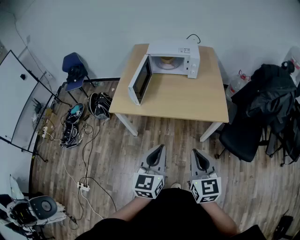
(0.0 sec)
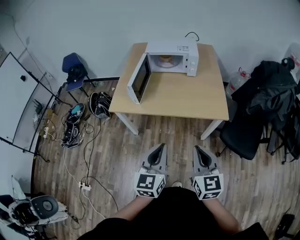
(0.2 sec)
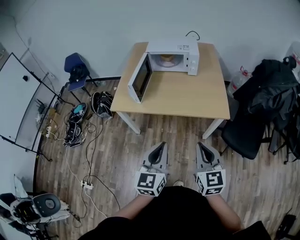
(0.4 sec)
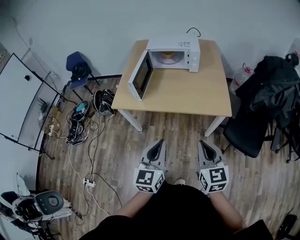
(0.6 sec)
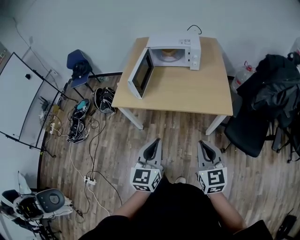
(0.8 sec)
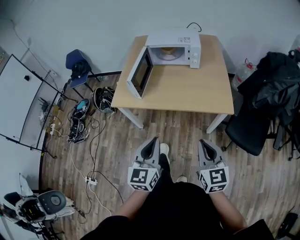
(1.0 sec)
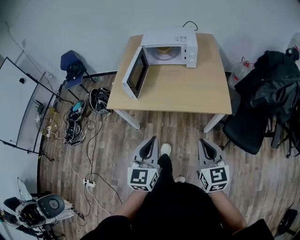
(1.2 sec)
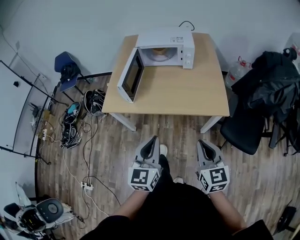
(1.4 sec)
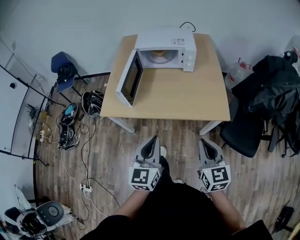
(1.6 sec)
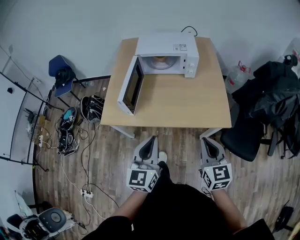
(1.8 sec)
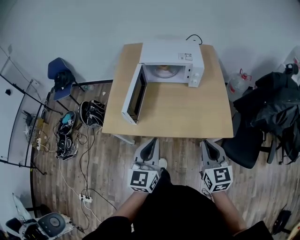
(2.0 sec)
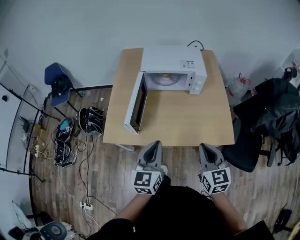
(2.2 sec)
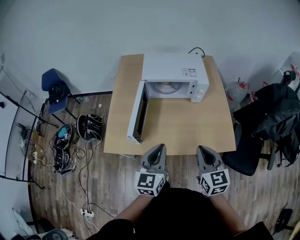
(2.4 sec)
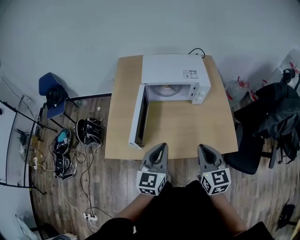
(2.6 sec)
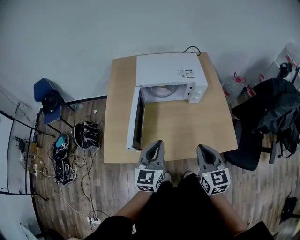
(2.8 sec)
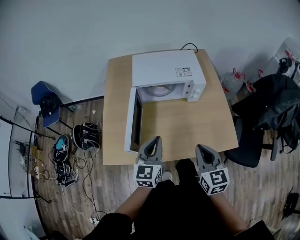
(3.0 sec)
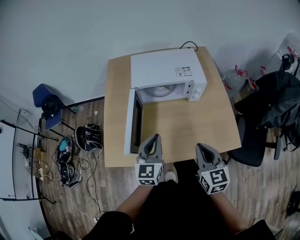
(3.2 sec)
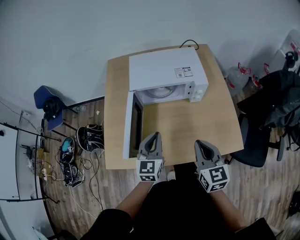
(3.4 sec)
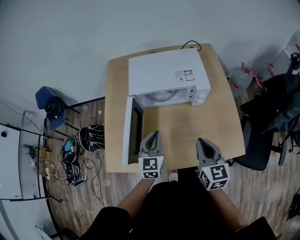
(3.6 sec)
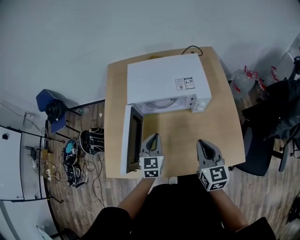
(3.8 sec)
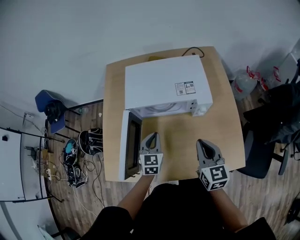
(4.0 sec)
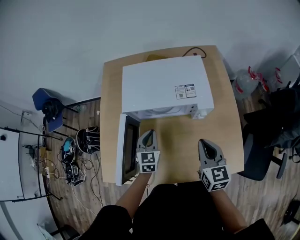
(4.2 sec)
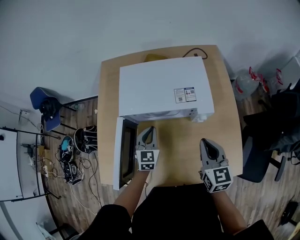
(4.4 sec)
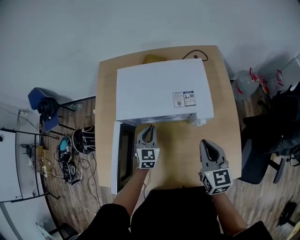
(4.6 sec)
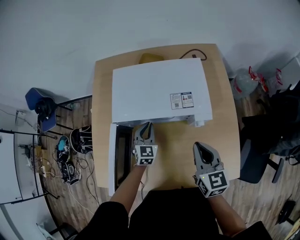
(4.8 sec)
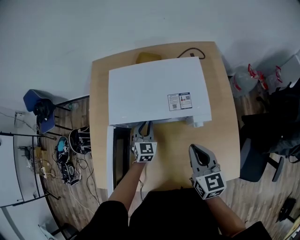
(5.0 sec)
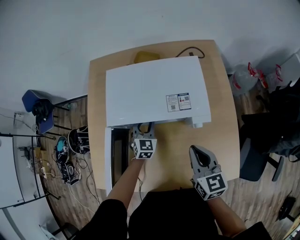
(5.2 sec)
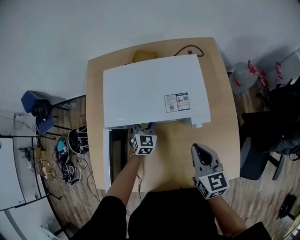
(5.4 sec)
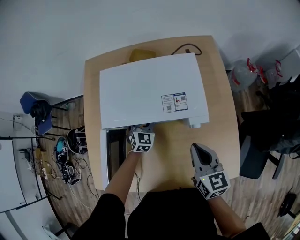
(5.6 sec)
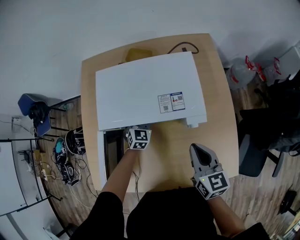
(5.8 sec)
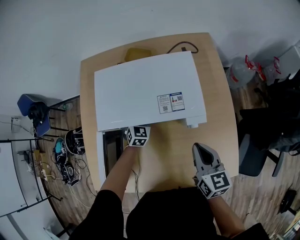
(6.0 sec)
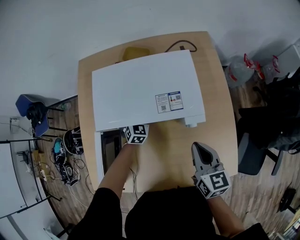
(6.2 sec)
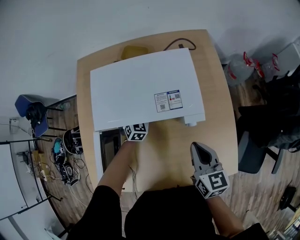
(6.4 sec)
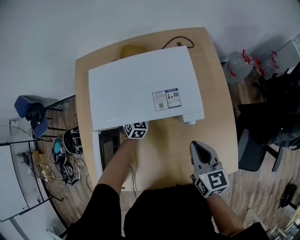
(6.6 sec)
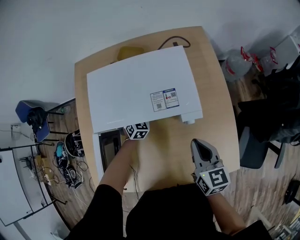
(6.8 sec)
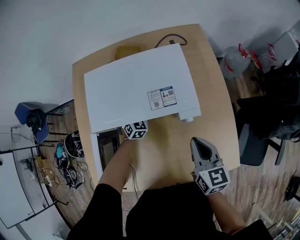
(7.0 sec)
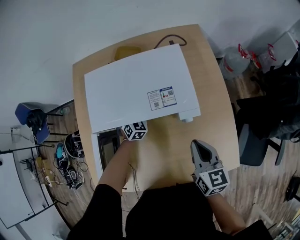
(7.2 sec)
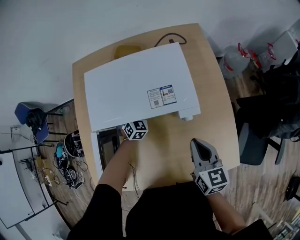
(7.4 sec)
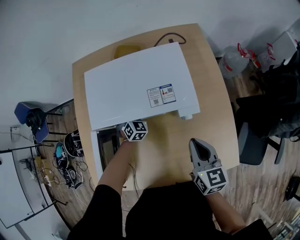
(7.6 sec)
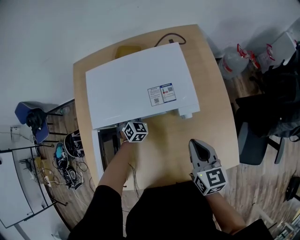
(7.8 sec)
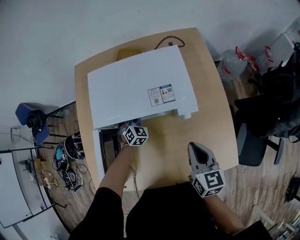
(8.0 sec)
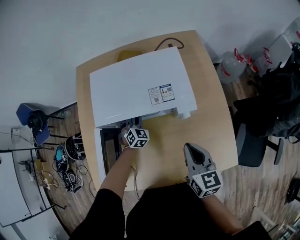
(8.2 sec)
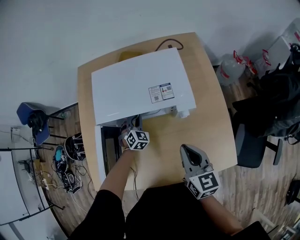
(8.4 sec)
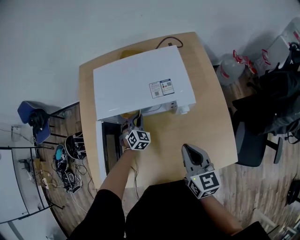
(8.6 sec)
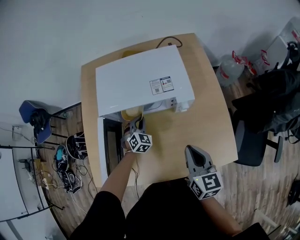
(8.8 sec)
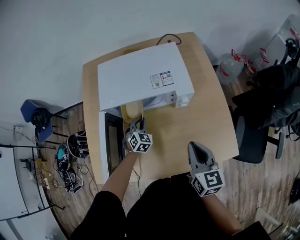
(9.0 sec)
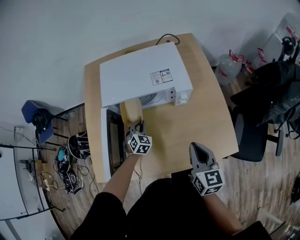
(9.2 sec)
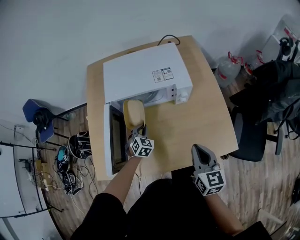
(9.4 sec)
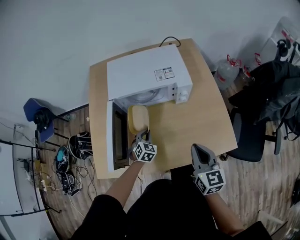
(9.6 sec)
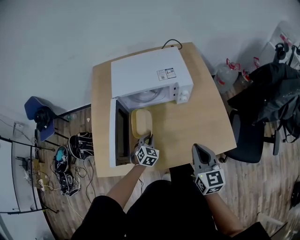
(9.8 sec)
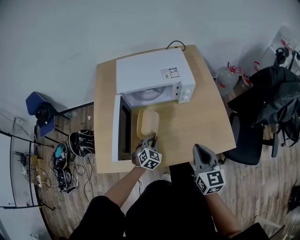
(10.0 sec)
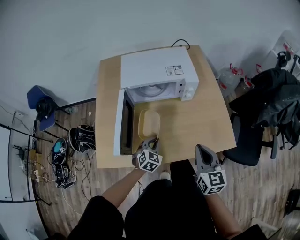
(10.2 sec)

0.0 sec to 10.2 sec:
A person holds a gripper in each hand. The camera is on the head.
0.0 sec to 1.4 sec: The left gripper travels forward by approximately 5 cm, while the right gripper goes some 10 cm forward and to the right.
1.4 sec to 3.0 sec: The right gripper heads forward and to the left, covering roughly 30 cm, while the left gripper heads forward, covering roughly 35 cm.
3.0 sec to 4.4 sec: The left gripper moves forward and downward, approximately 30 cm, and rotates some 20 degrees. The right gripper goes about 25 cm forward.
4.4 sec to 5.8 sec: The left gripper goes some 15 cm forward and downward, and opens.
5.8 sec to 7.2 sec: The left gripper closes.
7.2 sec to 8.8 sec: The right gripper travels backward by some 10 cm. The left gripper goes about 15 cm backward.
8.8 sec to 10.2 sec: The right gripper shifts about 15 cm backward, while the left gripper heads backward, covering some 25 cm.

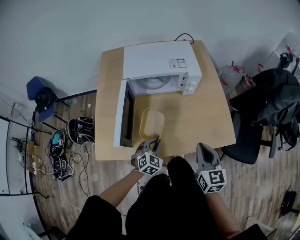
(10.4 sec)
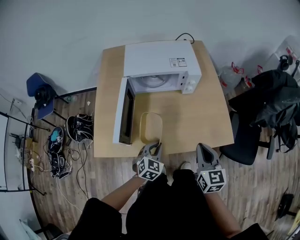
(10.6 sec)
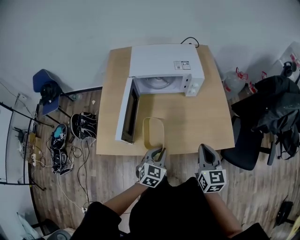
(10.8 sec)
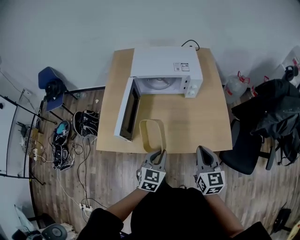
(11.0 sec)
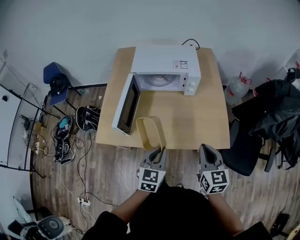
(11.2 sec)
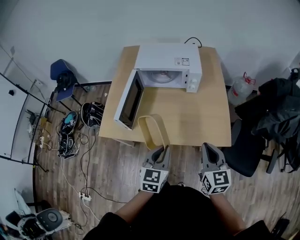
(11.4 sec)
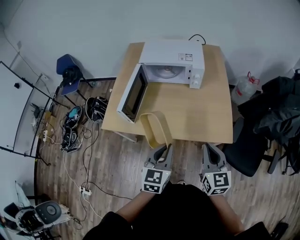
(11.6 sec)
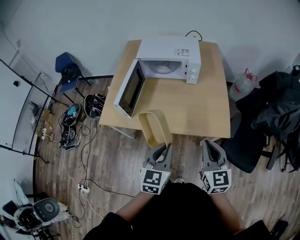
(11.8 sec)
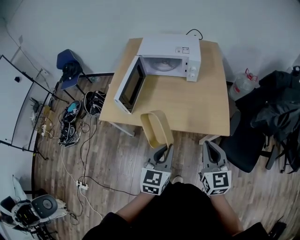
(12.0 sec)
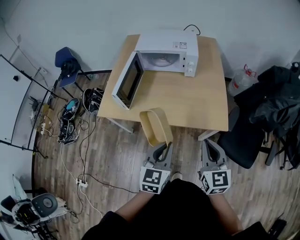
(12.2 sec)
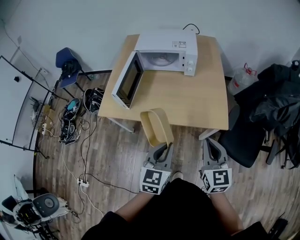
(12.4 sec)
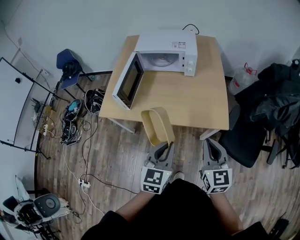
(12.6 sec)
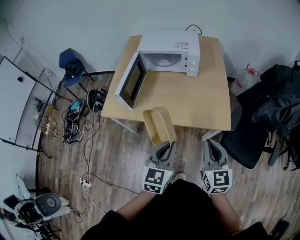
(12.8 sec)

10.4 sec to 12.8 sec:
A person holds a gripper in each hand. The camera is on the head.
10.4 sec to 11.6 sec: The right gripper heads backward, to the right and upward, covering roughly 15 cm; the left gripper travels upward, backward and to the right by approximately 30 cm, and turns by approximately 40 degrees.
11.6 sec to 12.8 sec: The two grippers go approximately 5 cm backward.

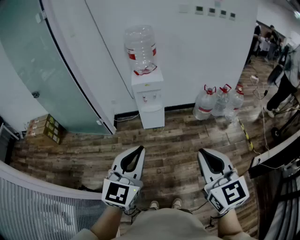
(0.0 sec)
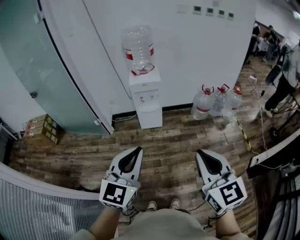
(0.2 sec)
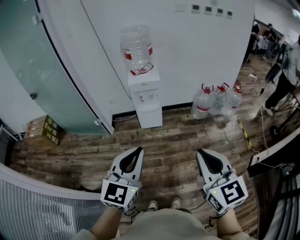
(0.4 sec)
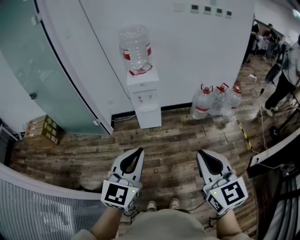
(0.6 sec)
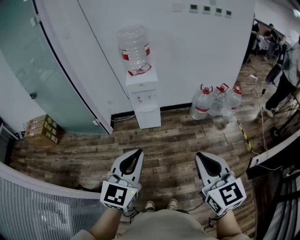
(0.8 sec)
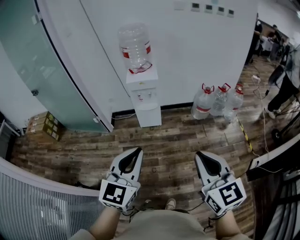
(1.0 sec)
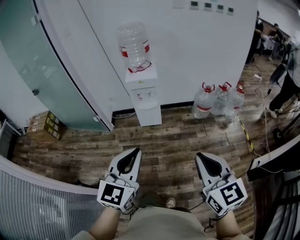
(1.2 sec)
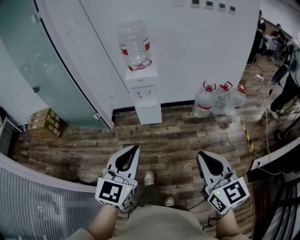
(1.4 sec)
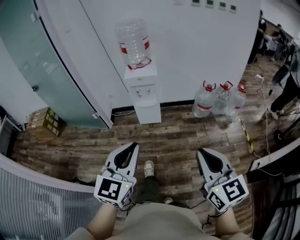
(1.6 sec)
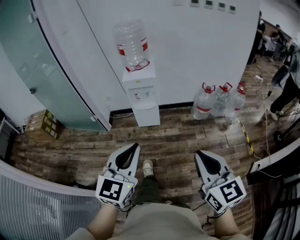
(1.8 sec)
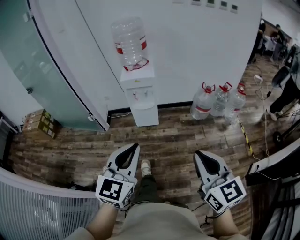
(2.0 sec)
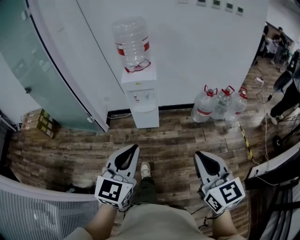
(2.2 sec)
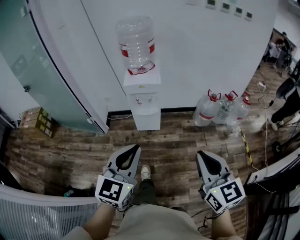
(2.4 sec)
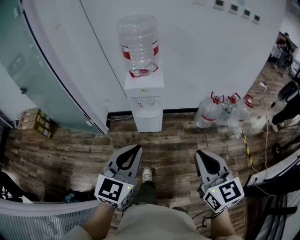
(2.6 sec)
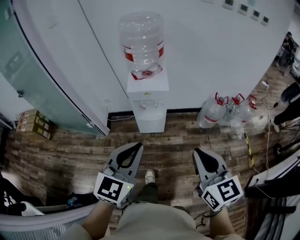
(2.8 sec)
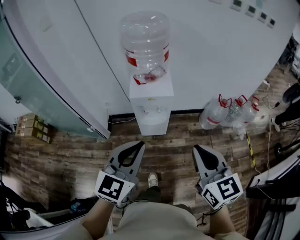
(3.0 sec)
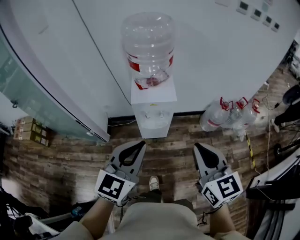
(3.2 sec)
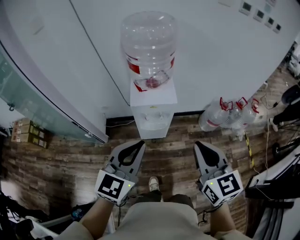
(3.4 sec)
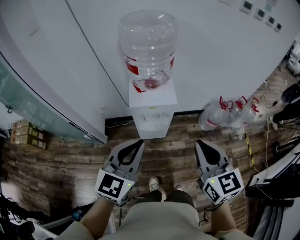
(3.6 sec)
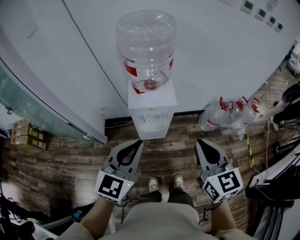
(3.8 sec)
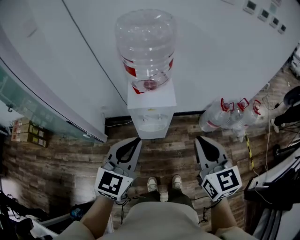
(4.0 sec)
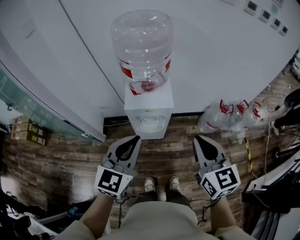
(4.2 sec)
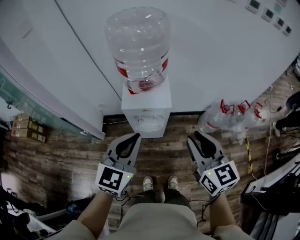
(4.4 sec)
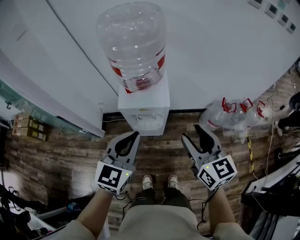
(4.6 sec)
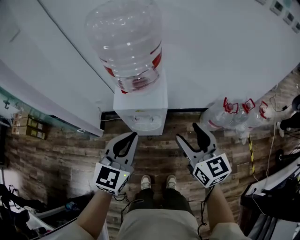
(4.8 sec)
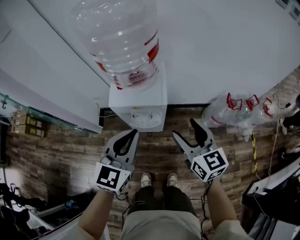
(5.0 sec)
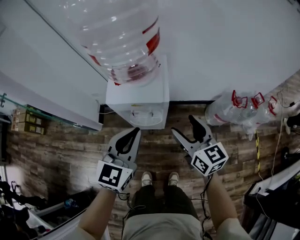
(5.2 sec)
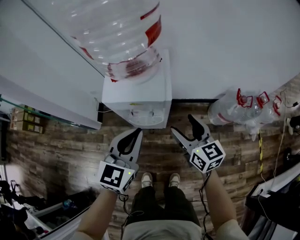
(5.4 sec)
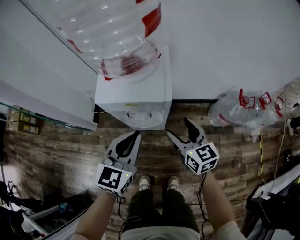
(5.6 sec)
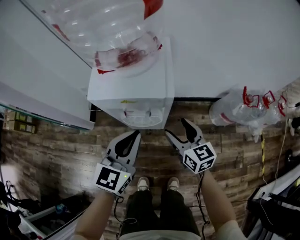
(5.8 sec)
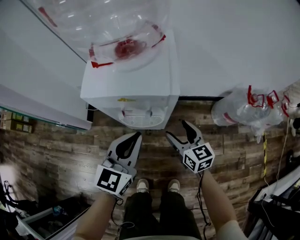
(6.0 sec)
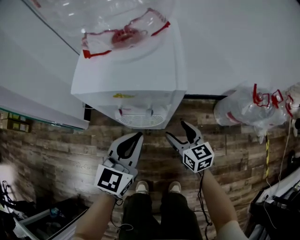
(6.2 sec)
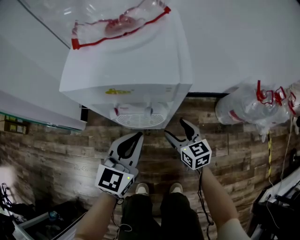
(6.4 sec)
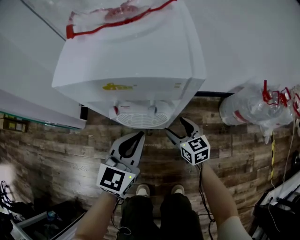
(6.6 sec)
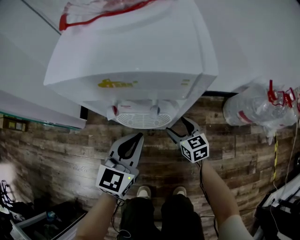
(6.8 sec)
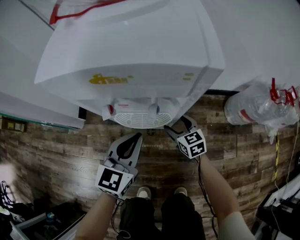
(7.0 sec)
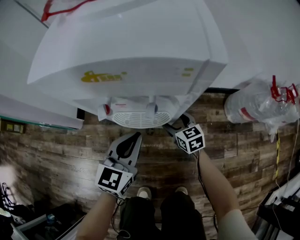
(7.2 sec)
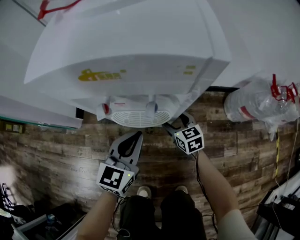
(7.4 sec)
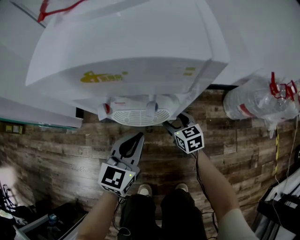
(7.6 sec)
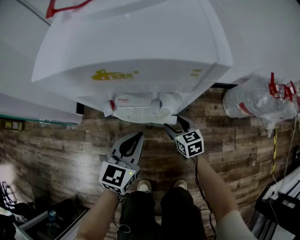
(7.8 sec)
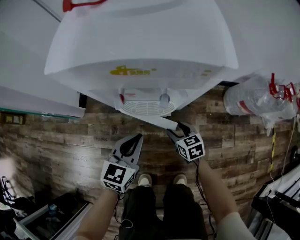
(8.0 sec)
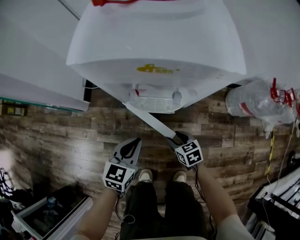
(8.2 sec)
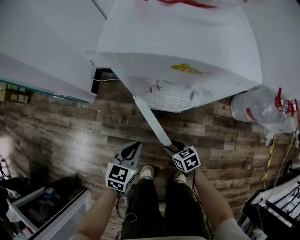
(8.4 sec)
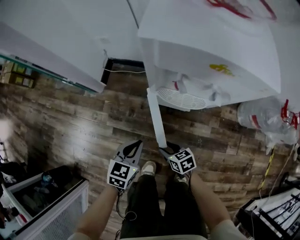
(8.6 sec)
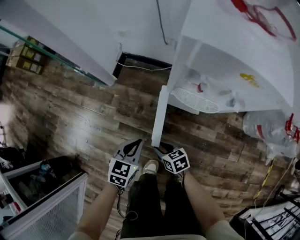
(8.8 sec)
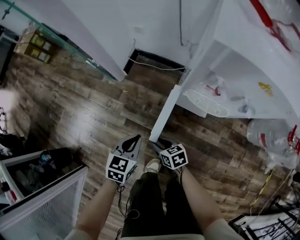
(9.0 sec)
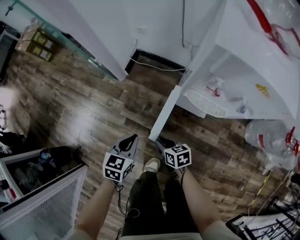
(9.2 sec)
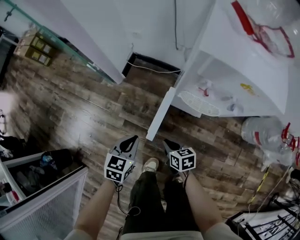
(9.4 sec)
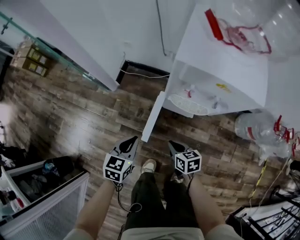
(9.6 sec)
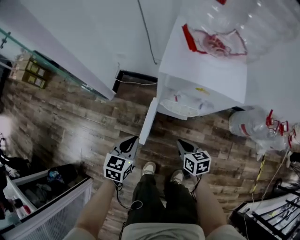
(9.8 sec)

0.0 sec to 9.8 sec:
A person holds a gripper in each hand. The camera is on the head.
0.0 sec to 1.4 sec: The grippers both shift to the right by approximately 10 cm.
1.4 sec to 2.8 sec: Both grippers travel together forward, approximately 30 cm.
2.8 sec to 4.2 sec: Both grippers move forward, some 20 cm.
4.2 sec to 5.6 sec: The two grippers go approximately 35 cm downward and forward. The right gripper opens its fingers.
5.6 sec to 7.0 sec: The two grippers go about 35 cm downward.
7.0 sec to 8.4 sec: The left gripper is displaced to the left, backward and downward by some 15 cm, and swivels about 20 degrees, while the right gripper heads backward and to the left, covering some 20 cm, changes its angle by roughly 30 degrees, and closes its fingers.
8.4 sec to 9.8 sec: The right gripper travels upward by approximately 20 cm, and closes. Meanwhile the left gripper travels upward and to the left by some 15 cm.

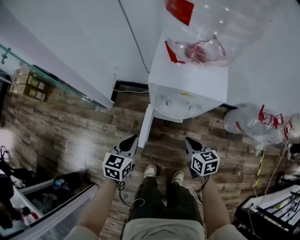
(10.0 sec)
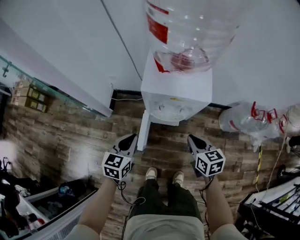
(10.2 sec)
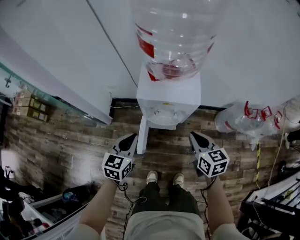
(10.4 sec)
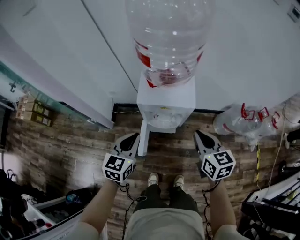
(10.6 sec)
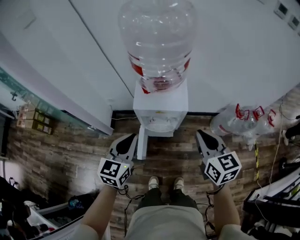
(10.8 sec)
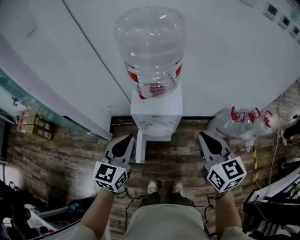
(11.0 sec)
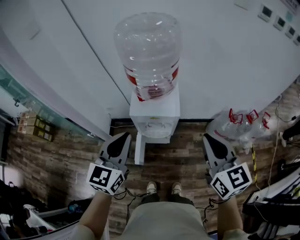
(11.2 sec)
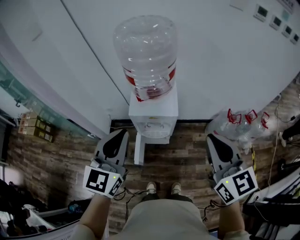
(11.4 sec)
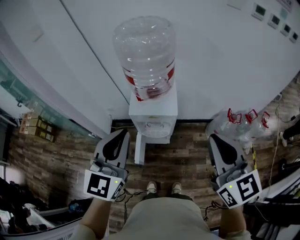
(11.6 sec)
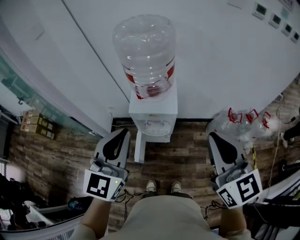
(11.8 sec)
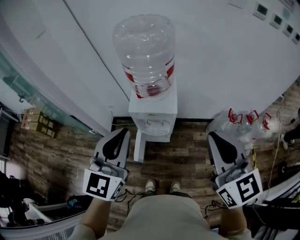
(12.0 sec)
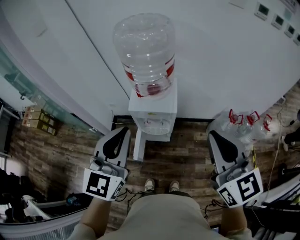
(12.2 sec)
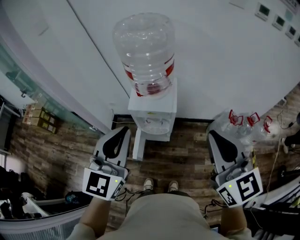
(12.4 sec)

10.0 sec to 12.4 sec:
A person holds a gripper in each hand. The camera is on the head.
10.0 sec to 11.2 sec: The grippers both shift upward by approximately 40 cm. The right gripper swivels some 40 degrees, while the left gripper changes its angle by about 30 degrees.
11.2 sec to 12.4 sec: The right gripper goes roughly 10 cm upward, while the left gripper shifts roughly 10 cm upward, to the right and backward.
